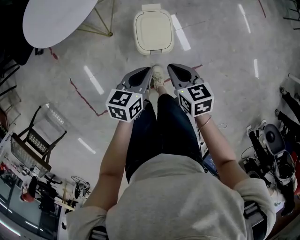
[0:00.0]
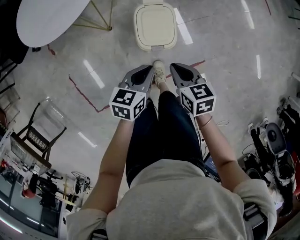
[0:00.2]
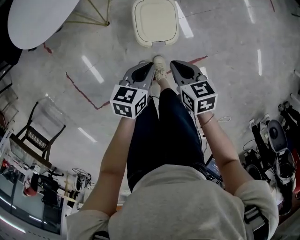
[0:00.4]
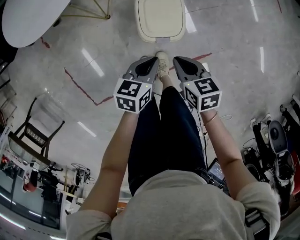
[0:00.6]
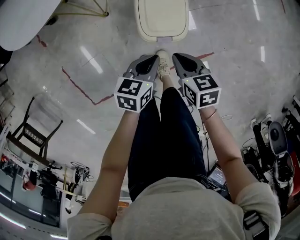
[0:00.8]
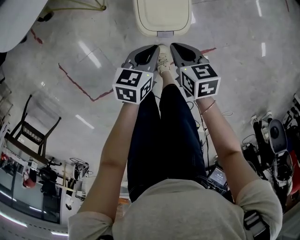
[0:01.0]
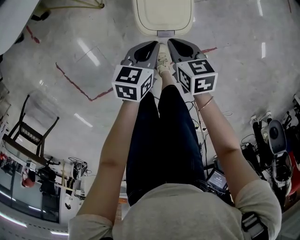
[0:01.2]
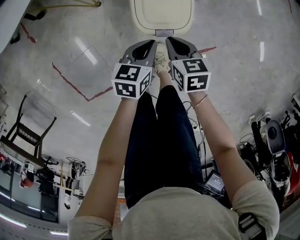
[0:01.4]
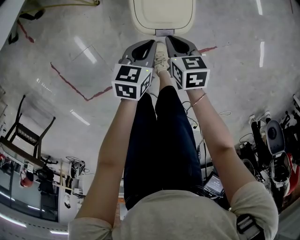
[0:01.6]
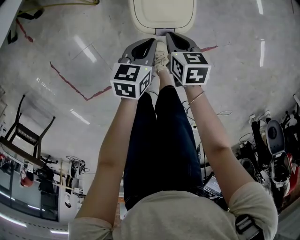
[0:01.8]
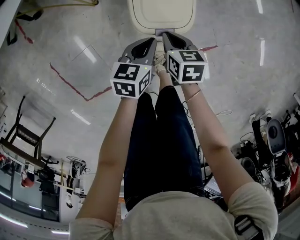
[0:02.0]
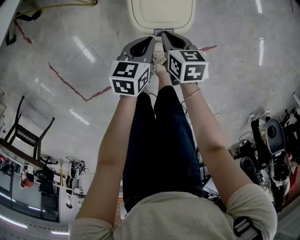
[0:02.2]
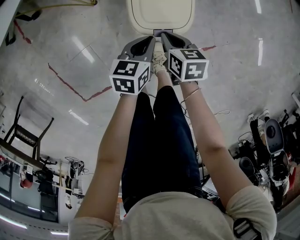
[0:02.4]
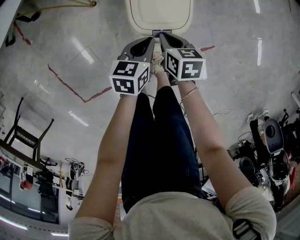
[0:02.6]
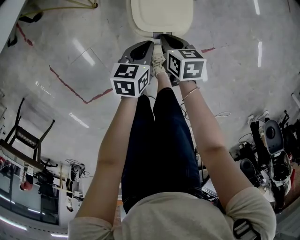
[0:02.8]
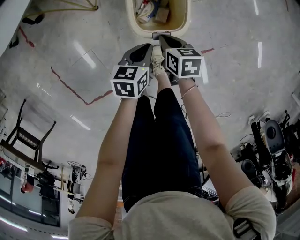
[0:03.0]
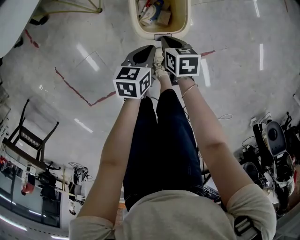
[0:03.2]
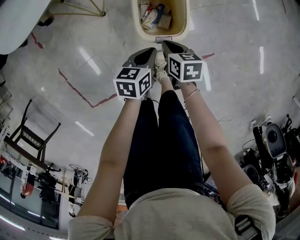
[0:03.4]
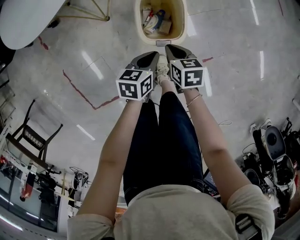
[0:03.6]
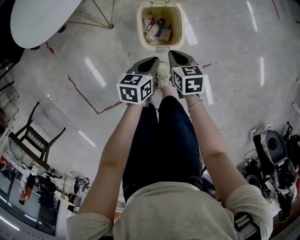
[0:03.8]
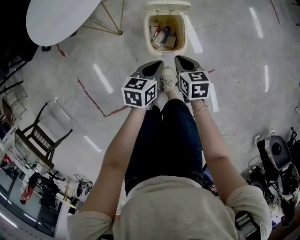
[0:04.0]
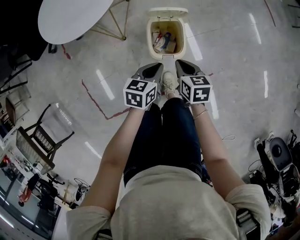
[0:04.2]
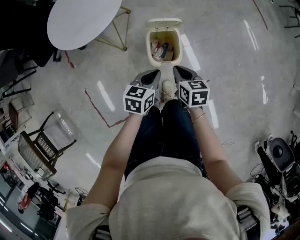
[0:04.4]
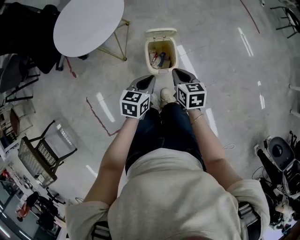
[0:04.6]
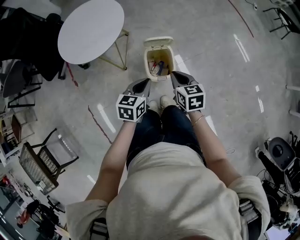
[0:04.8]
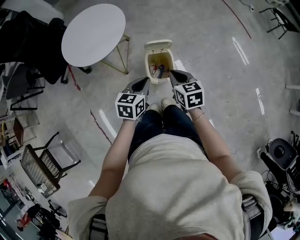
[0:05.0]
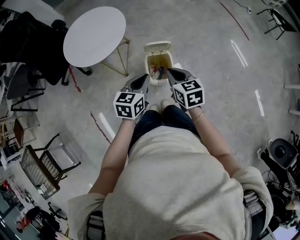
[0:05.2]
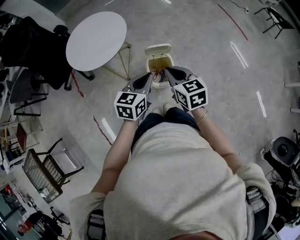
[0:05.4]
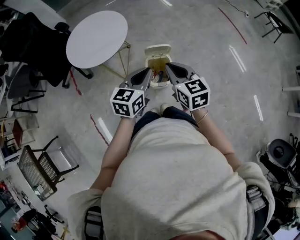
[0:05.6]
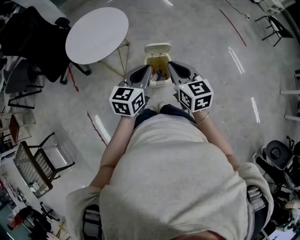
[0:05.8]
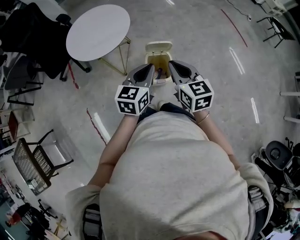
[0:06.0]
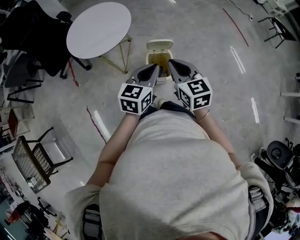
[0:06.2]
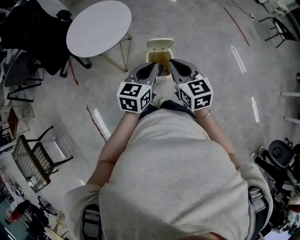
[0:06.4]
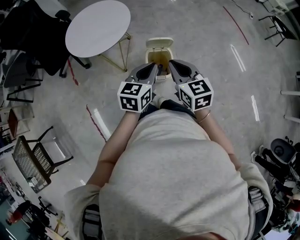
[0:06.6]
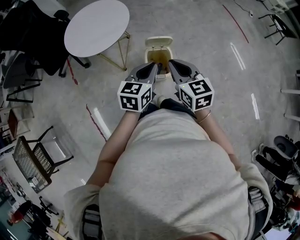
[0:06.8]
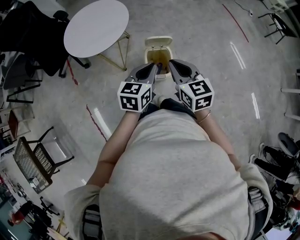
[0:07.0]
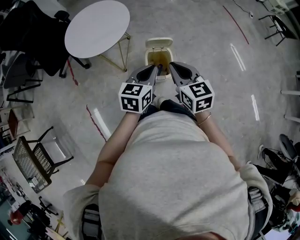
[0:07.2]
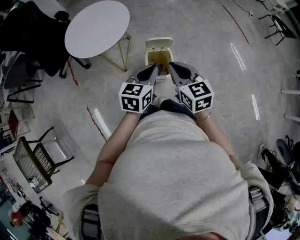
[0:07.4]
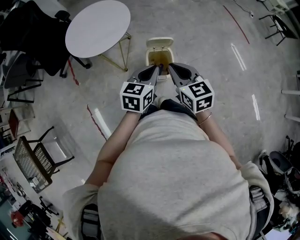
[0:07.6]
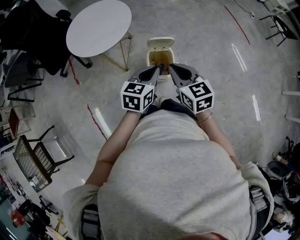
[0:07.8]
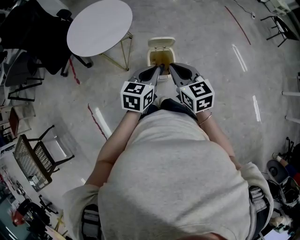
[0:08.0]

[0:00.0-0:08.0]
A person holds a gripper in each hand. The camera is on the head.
0:00.0 to 0:01.6: Both grippers move downward, about 25 cm.
0:01.6 to 0:03.2: The grippers move only a little.
0:03.2 to 0:04.8: The grippers both shift upward by some 35 cm. The left gripper changes its angle by approximately 20 degrees. Meanwhile the right gripper swivels about 30 degrees.
0:04.8 to 0:06.4: The two grippers go approximately 15 cm upward. The right gripper swivels some 20 degrees.
0:06.4 to 0:08.0: There are only small adjustments of the grippers.

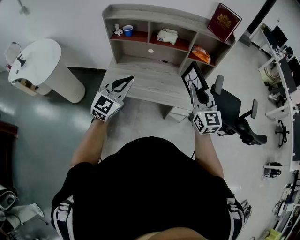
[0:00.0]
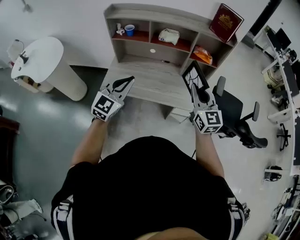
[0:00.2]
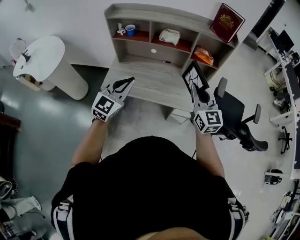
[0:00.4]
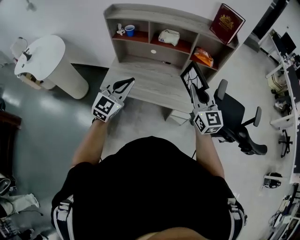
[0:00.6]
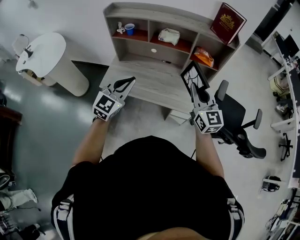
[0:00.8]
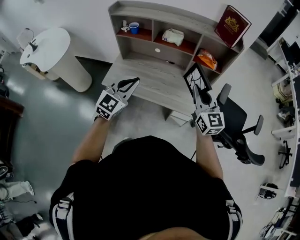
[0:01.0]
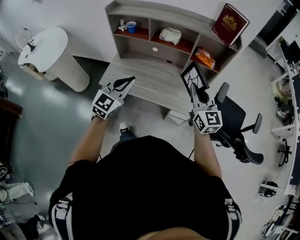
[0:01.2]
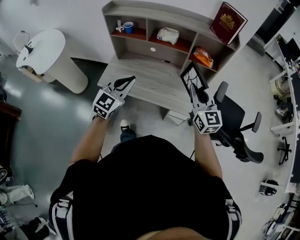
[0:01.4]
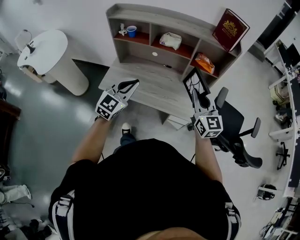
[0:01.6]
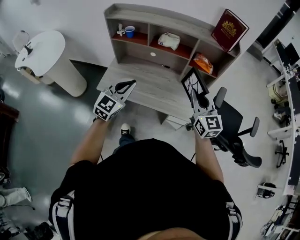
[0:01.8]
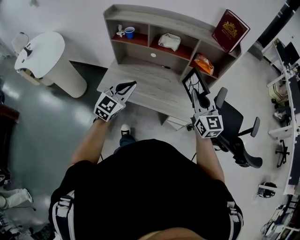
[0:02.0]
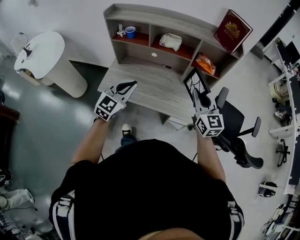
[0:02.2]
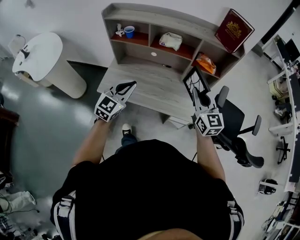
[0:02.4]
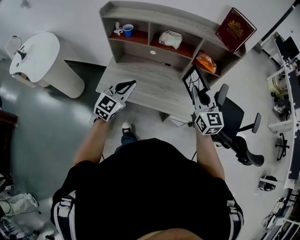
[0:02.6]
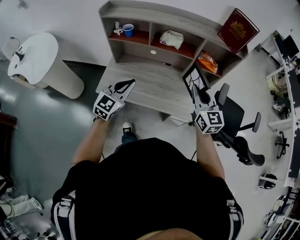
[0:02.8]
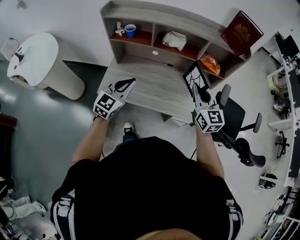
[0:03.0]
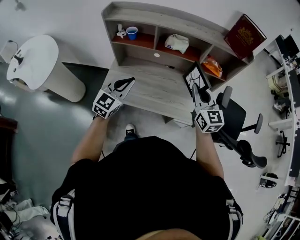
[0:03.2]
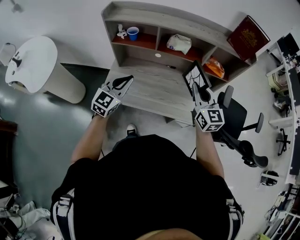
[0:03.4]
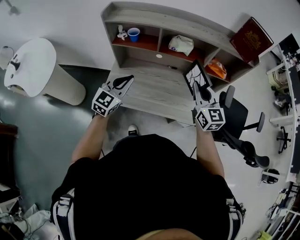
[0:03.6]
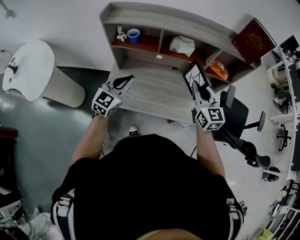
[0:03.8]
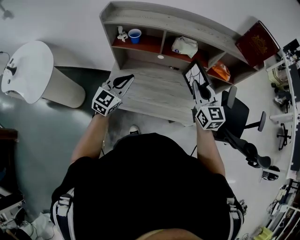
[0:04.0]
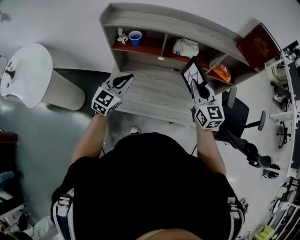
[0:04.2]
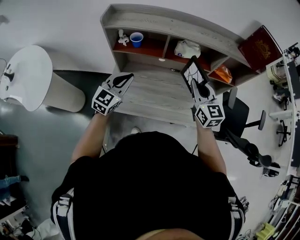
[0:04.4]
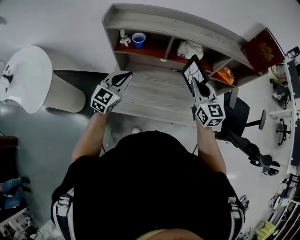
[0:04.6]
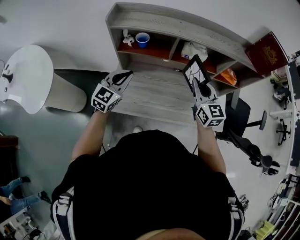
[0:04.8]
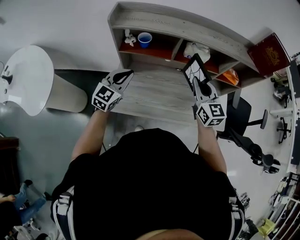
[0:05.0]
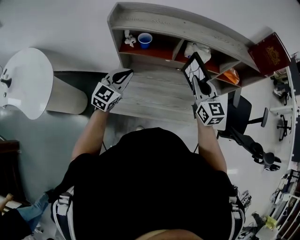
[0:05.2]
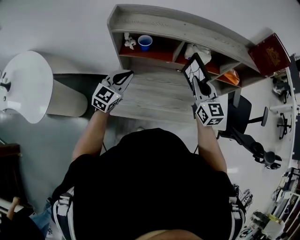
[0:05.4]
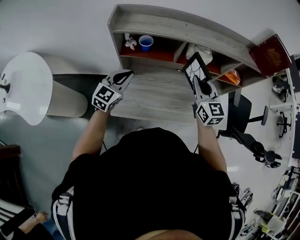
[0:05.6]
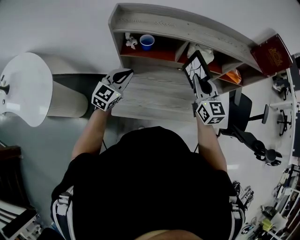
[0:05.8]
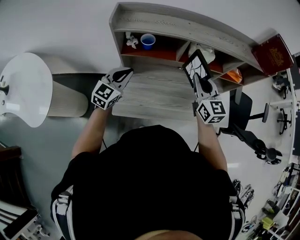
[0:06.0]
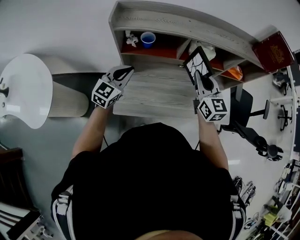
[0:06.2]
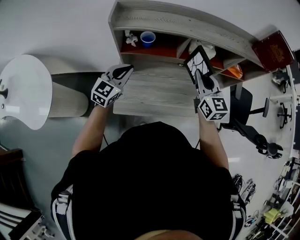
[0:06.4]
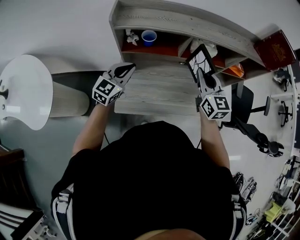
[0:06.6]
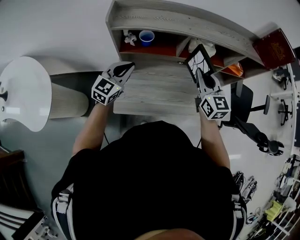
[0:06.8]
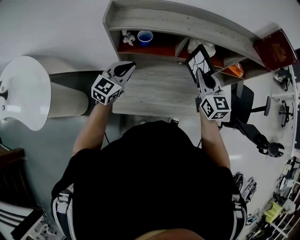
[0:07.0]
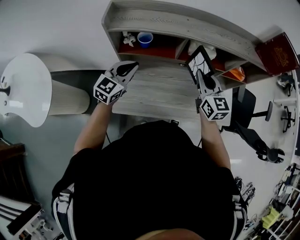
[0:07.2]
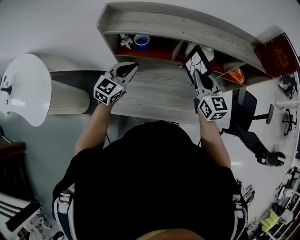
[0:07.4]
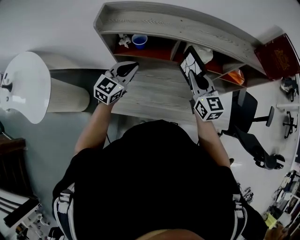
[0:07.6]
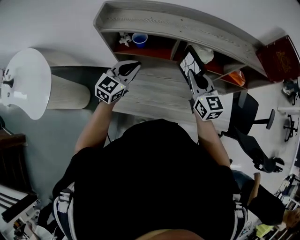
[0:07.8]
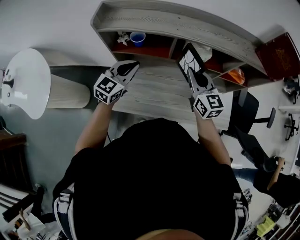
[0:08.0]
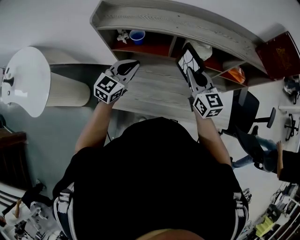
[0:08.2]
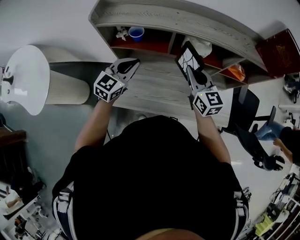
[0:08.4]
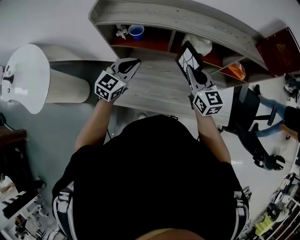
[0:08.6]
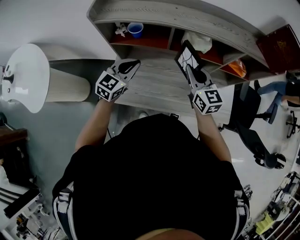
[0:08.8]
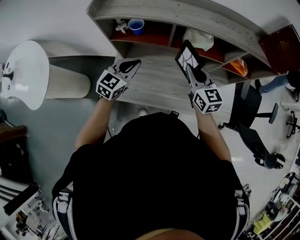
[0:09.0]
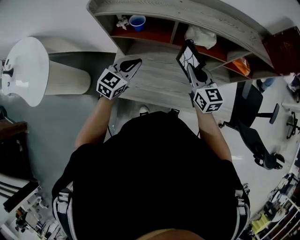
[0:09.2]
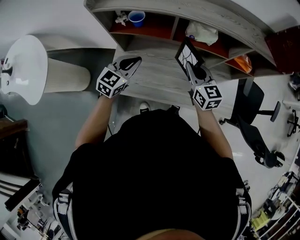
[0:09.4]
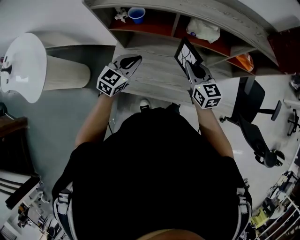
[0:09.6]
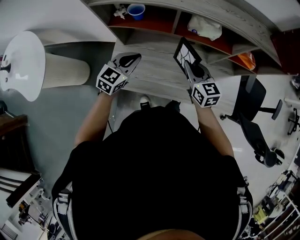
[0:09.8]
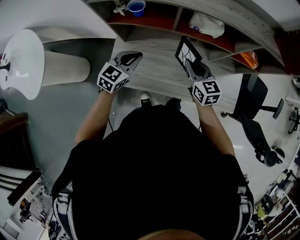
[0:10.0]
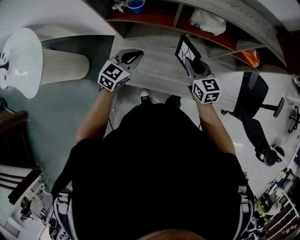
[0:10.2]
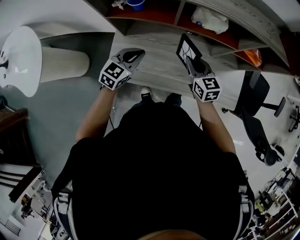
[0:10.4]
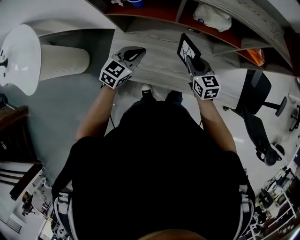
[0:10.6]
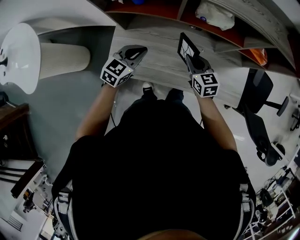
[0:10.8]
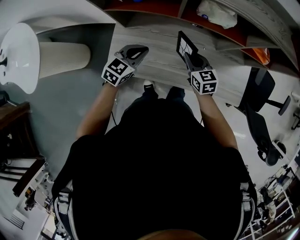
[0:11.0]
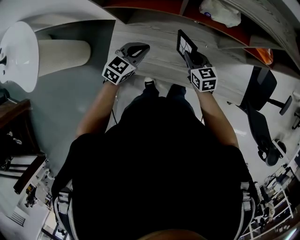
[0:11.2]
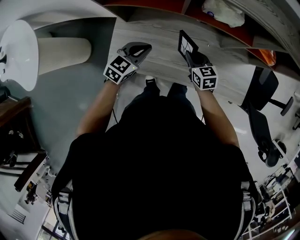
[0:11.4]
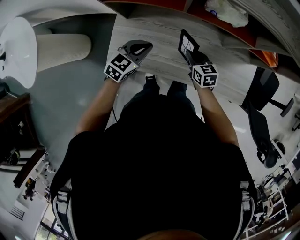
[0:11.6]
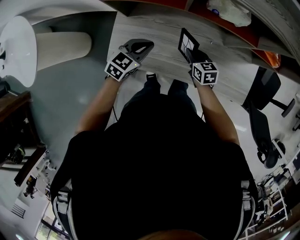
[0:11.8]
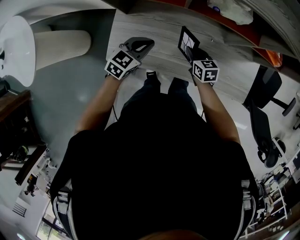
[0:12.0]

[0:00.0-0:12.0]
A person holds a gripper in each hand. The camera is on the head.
0:00.0 to 0:01.6: The right gripper heads to the right and forward, covering roughly 10 cm. Meanwhile the left gripper is displaced to the right by roughly 10 cm.
0:01.6 to 0:03.0: The left gripper moves to the left and forward, approximately 10 cm. Meanwhile the right gripper goes roughly 10 cm forward and to the left.
0:03.0 to 0:04.4: The left gripper is displaced forward and to the left by roughly 20 cm; the right gripper moves to the left and forward, approximately 15 cm.
0:04.4 to 0:06.0: The right gripper heads to the left, covering approximately 10 cm. Meanwhile the left gripper is displaced to the left and forward by about 10 cm.
0:06.0 to 0:07.6: The right gripper shifts by roughly 5 cm. The left gripper shifts about 5 cm to the right.
0:07.6 to 0:09.0: The left gripper changes place by roughly 5 cm.
0:09.0 to 0:10.4: The grippers both shift downward by about 10 cm.
0:10.4 to 0:12.0: The left gripper goes about 10 cm downward, while the right gripper travels downward by roughly 15 cm, and turns by about 20 degrees.

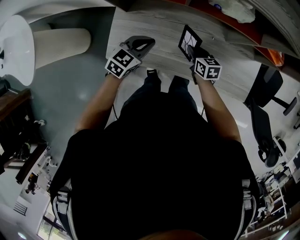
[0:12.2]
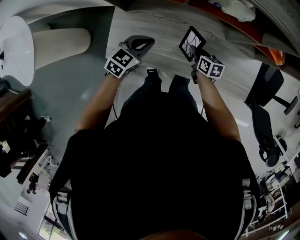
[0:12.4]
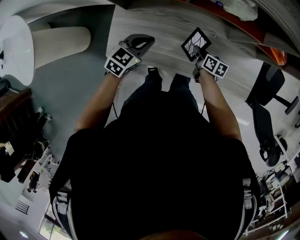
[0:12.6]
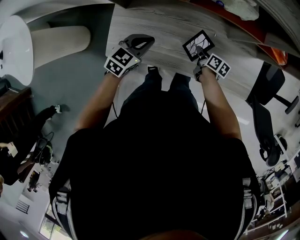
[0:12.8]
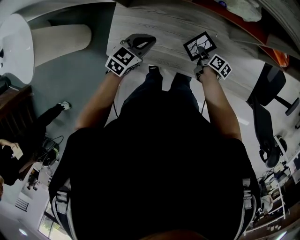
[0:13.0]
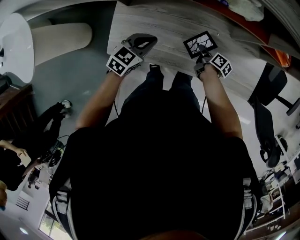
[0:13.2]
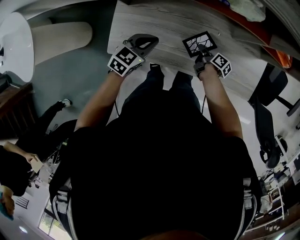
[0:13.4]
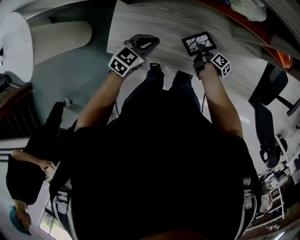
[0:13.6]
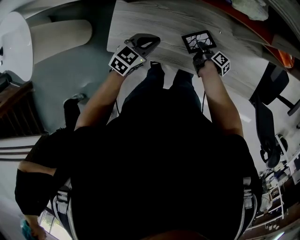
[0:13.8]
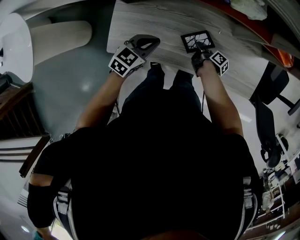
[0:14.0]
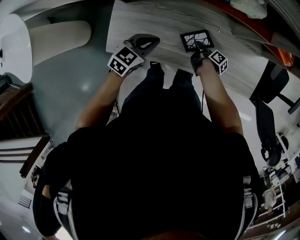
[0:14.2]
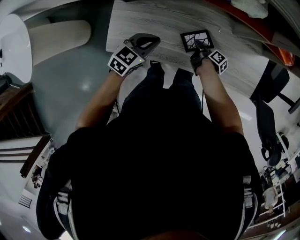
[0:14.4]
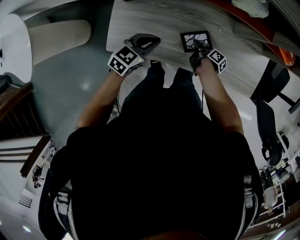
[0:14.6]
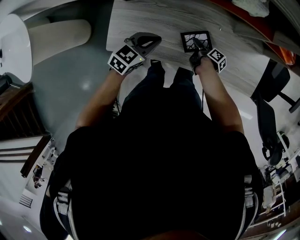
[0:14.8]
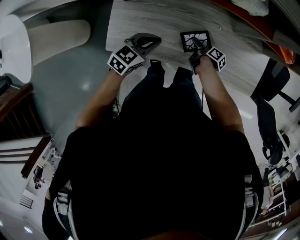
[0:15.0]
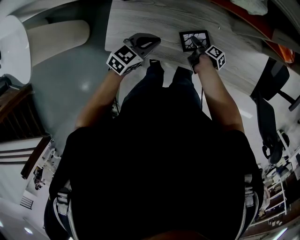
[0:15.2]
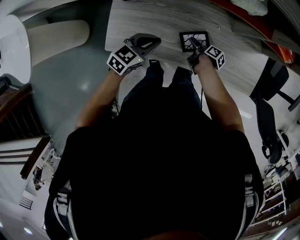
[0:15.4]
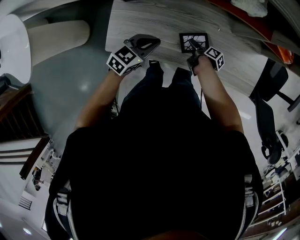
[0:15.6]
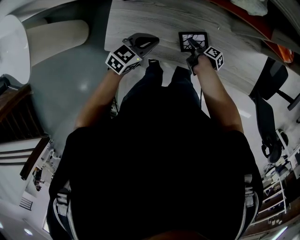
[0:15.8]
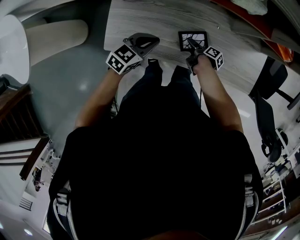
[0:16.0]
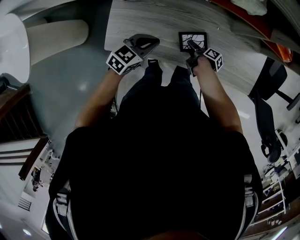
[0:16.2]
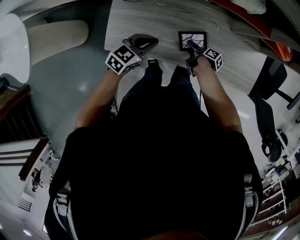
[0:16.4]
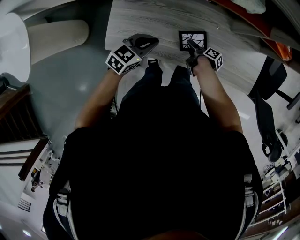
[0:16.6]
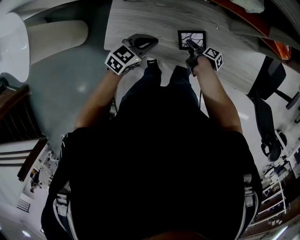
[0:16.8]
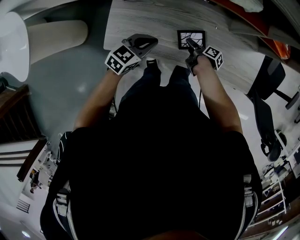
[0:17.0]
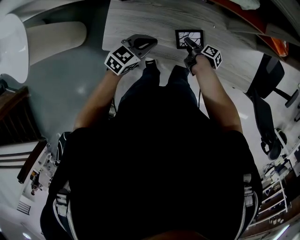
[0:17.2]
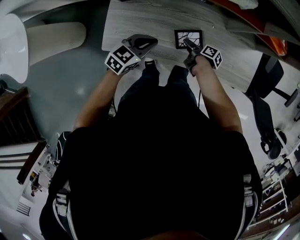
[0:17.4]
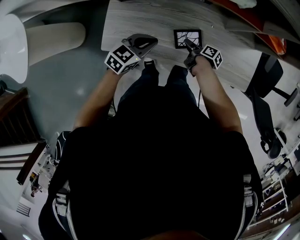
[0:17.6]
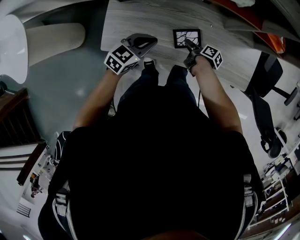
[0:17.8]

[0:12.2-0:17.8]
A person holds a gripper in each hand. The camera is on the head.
0:12.2 to 0:13.6: The right gripper travels downward and to the right by approximately 10 cm, and twists approximately 60 degrees clockwise, seen from behind.
0:13.6 to 0:15.0: The right gripper opens.
0:15.0 to 0:17.8: There are only small adjustments of the grippers.
